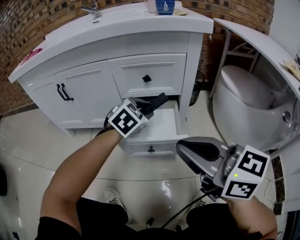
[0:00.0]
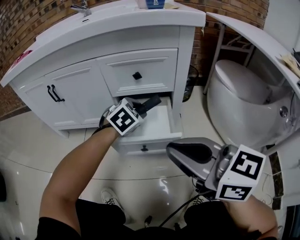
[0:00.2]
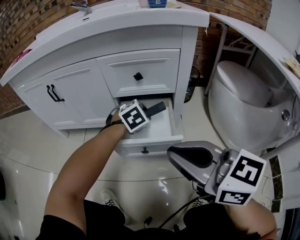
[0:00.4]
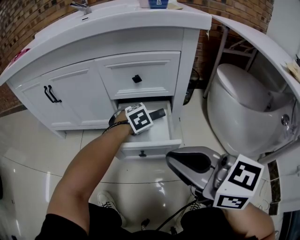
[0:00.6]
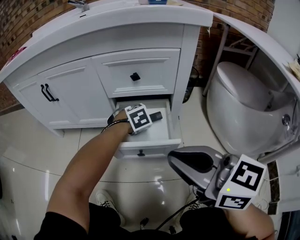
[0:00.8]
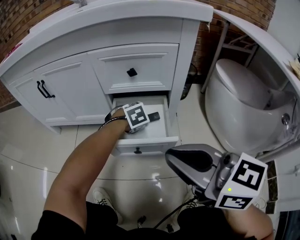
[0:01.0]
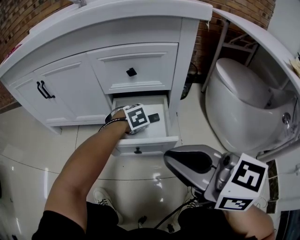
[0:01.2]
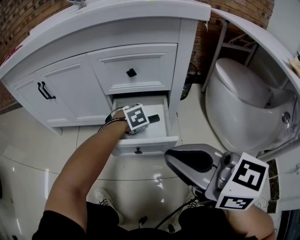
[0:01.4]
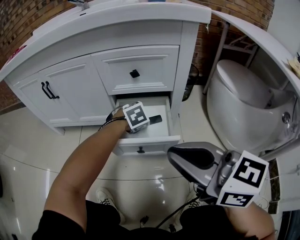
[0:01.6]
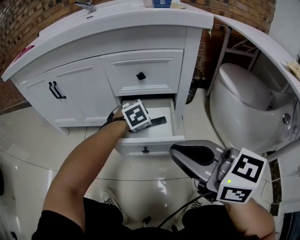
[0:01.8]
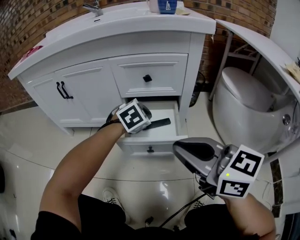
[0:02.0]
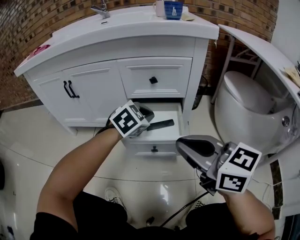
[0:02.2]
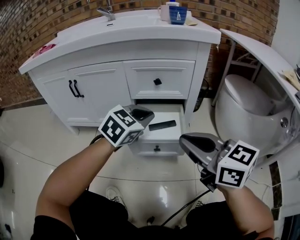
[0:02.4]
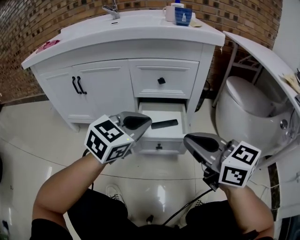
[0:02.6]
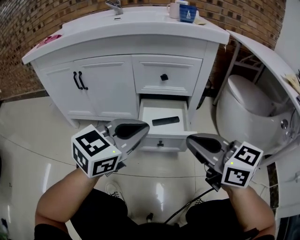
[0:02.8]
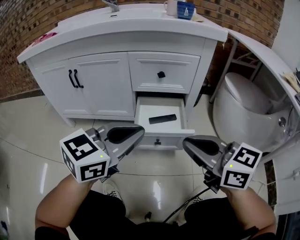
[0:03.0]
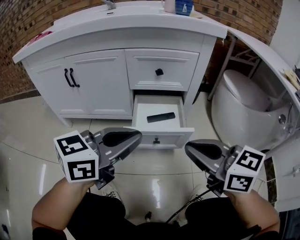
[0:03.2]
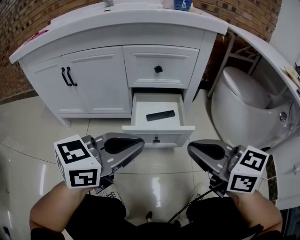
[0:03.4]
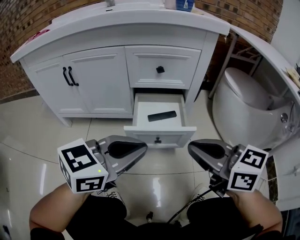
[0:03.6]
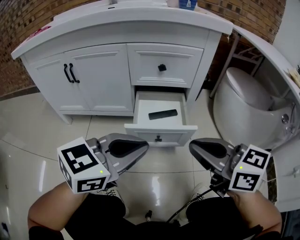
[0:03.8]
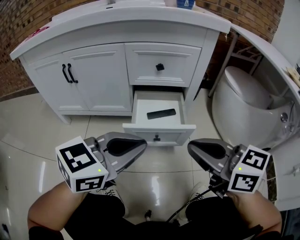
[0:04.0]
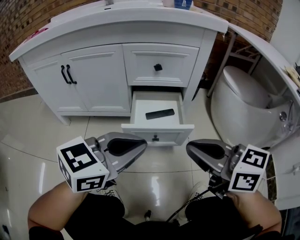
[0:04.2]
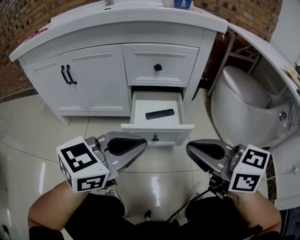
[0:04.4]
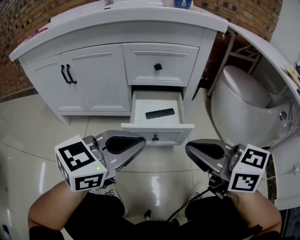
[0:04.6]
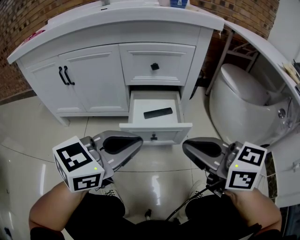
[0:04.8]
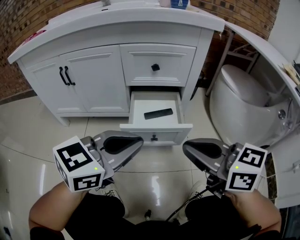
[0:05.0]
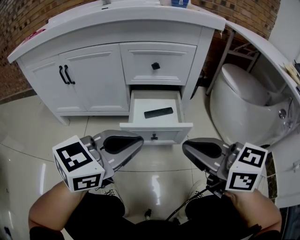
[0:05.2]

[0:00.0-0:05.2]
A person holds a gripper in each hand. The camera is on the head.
0:00.0 to 0:01.8: The left gripper is displaced downward by roughly 10 cm, and changes its angle by approximately 20 degrees.
0:01.8 to 0:03.4: The left gripper goes about 30 cm backward and upward, points its fingers approximately 50 degrees further upward, and closes.
0:03.4 to 0:05.2: The grippers make only small movements.

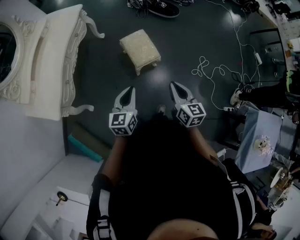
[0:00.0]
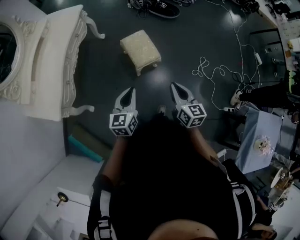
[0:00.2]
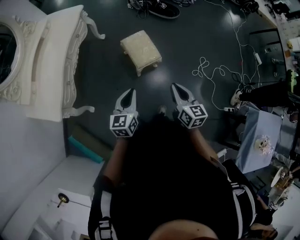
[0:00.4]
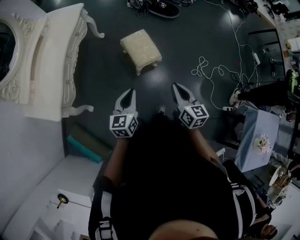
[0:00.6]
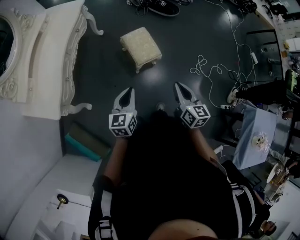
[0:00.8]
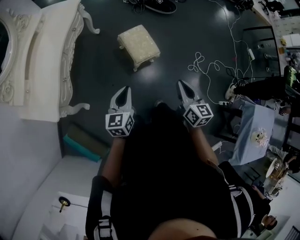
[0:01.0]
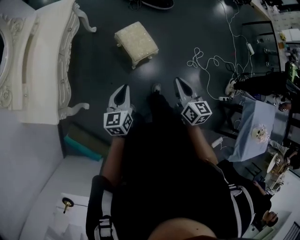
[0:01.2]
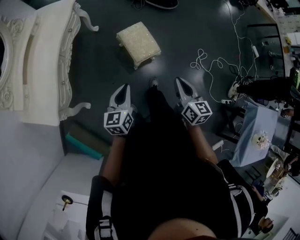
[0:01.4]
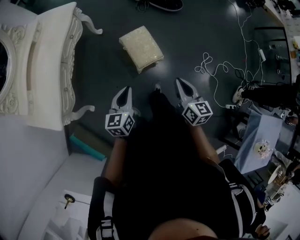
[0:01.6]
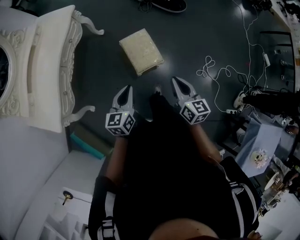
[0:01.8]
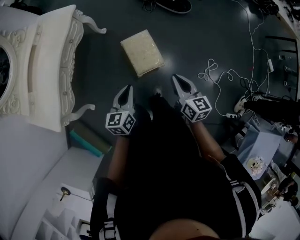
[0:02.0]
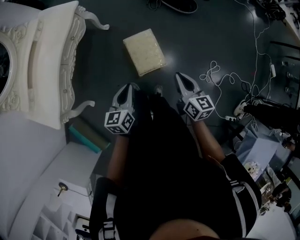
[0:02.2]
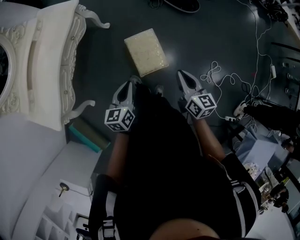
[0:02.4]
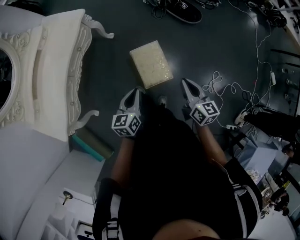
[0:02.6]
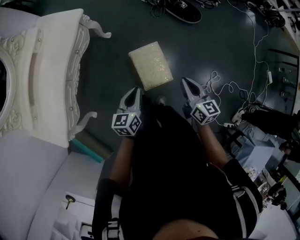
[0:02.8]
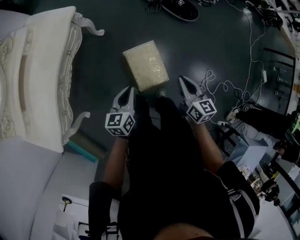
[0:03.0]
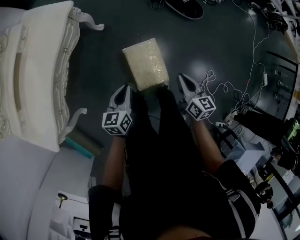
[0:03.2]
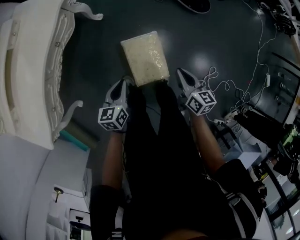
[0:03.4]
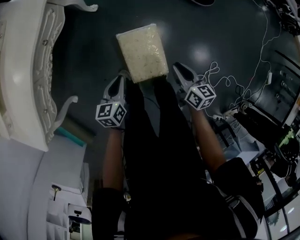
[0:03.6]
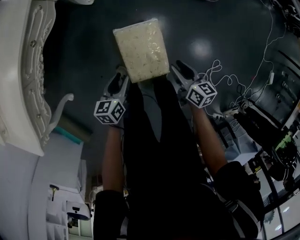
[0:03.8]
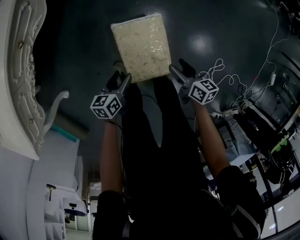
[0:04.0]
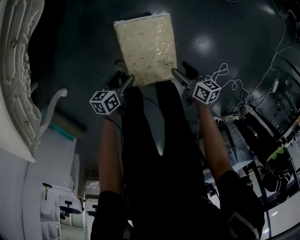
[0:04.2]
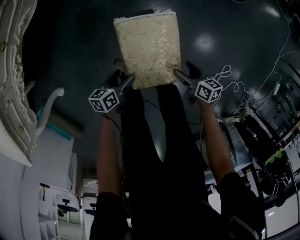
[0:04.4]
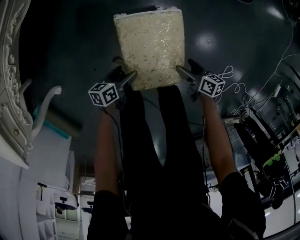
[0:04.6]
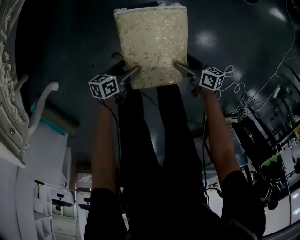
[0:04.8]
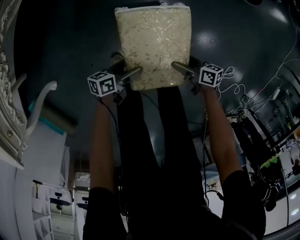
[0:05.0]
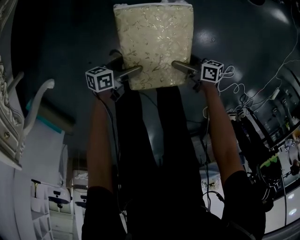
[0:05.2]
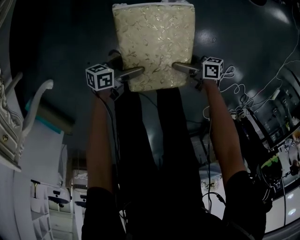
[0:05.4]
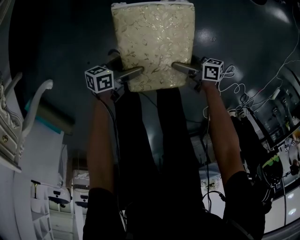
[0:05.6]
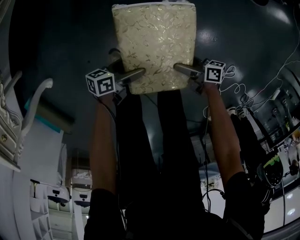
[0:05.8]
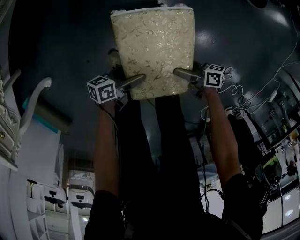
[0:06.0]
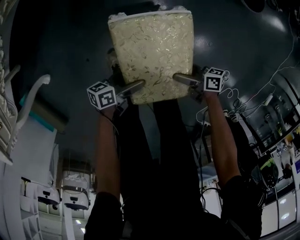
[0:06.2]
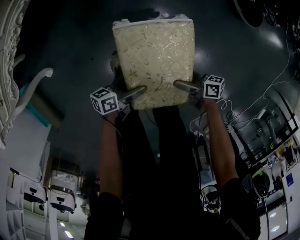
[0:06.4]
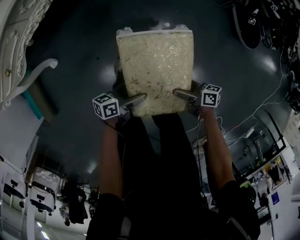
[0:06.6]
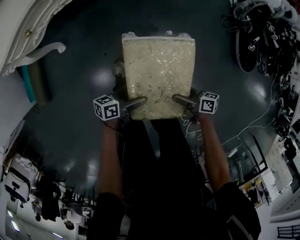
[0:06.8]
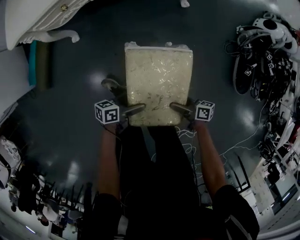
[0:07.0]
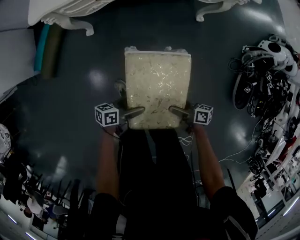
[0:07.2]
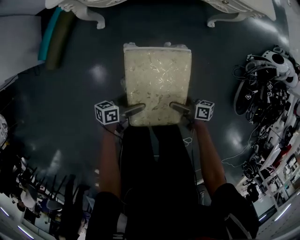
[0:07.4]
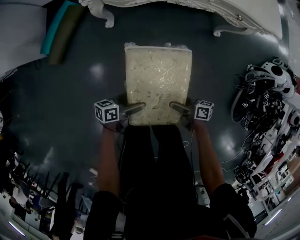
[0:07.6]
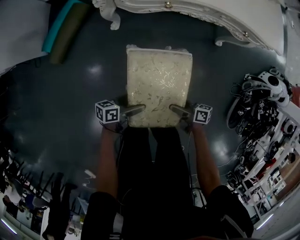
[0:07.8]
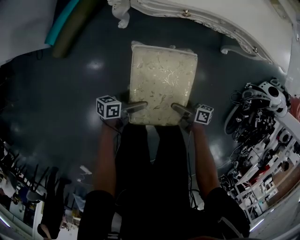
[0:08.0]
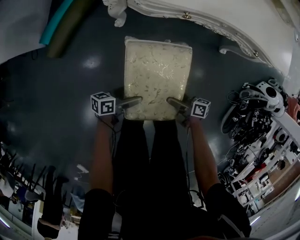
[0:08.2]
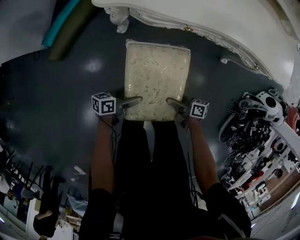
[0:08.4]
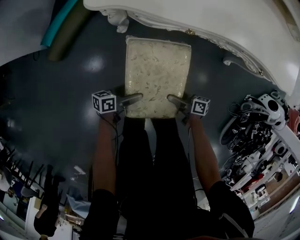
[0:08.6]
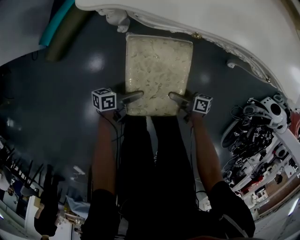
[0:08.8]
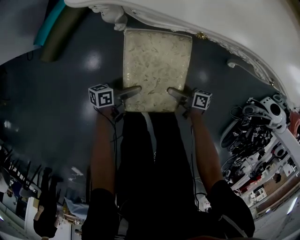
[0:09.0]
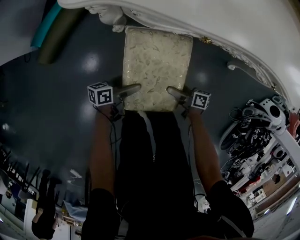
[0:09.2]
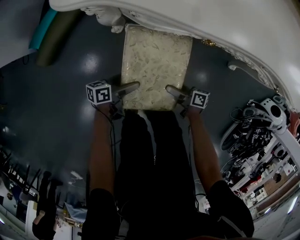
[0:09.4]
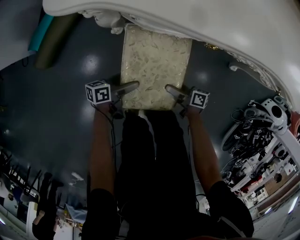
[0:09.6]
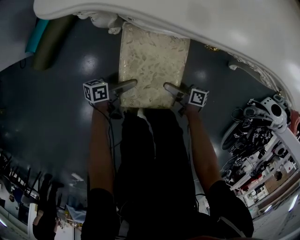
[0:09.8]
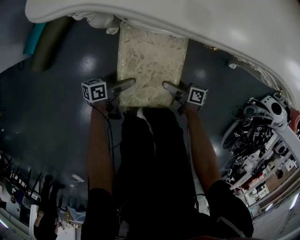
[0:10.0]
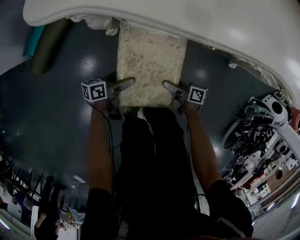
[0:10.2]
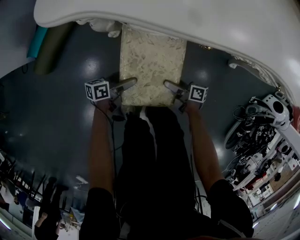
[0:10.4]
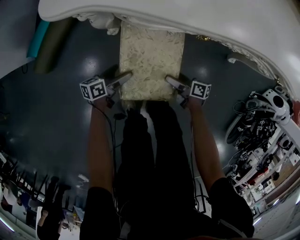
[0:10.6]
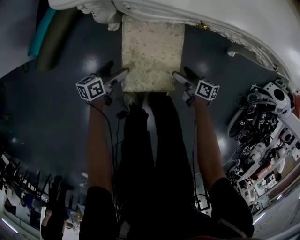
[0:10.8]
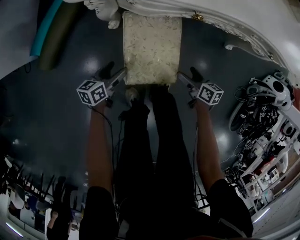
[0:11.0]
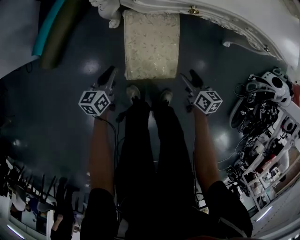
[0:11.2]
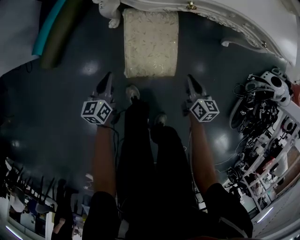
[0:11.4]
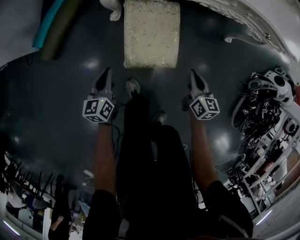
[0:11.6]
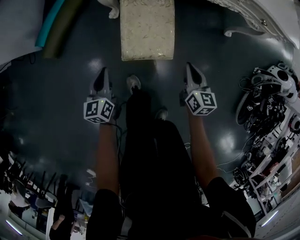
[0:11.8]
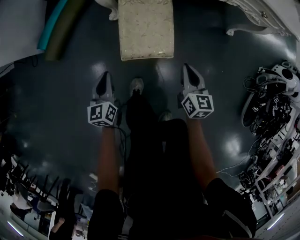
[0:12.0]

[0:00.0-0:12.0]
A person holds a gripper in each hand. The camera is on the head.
0:00.0 to 0:01.6: Both grippers travel together forward, about 10 cm.
0:01.6 to 0:03.0: Both grippers travel together forward, about 30 cm.
0:03.0 to 0:04.4: The grippers both shift downward by approximately 50 cm. The left gripper changes its angle by some 30 degrees, and opens, while the right gripper turns by about 40 degrees, and opens its fingers.
0:04.4 to 0:06.0: Both grippers move downward, approximately 10 cm. The right gripper turns by approximately 30 degrees. The left gripper turns by approximately 20 degrees.
0:06.0 to 0:07.6: The left gripper moves approximately 40 cm, and turns by approximately 50 degrees; the right gripper shifts by approximately 40 cm, and swivels about 50 degrees.
0:07.6 to 0:09.0: The right gripper ends up about 30 cm from where it was. The left gripper shifts by about 30 cm.
0:09.0 to 0:10.4: Both grippers travel together downward and forward, about 10 cm.
0:10.4 to 0:12.0: The left gripper goes roughly 25 cm upward, backward and to the left, turns by some 60 degrees, and closes its fingers, while the right gripper goes roughly 25 cm upward and backward, swivels some 60 degrees, and closes up.

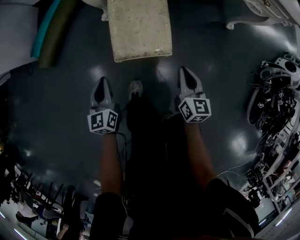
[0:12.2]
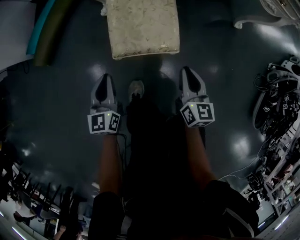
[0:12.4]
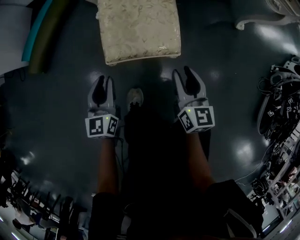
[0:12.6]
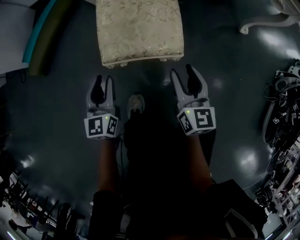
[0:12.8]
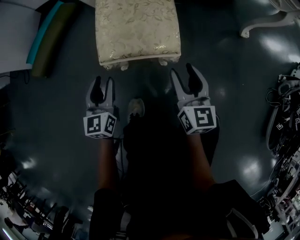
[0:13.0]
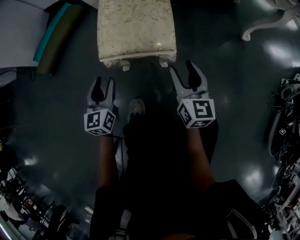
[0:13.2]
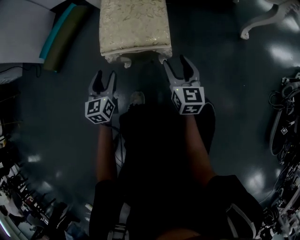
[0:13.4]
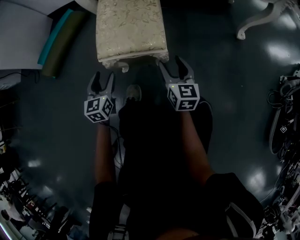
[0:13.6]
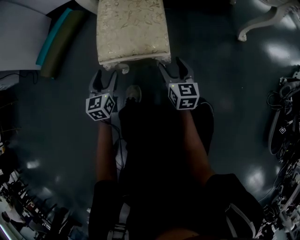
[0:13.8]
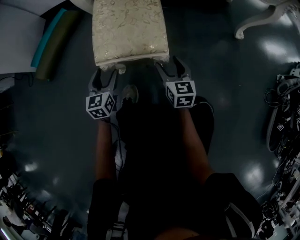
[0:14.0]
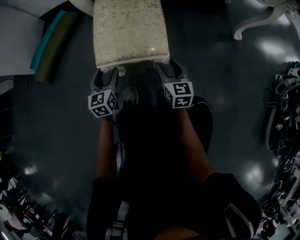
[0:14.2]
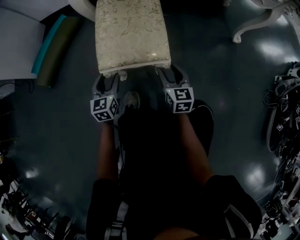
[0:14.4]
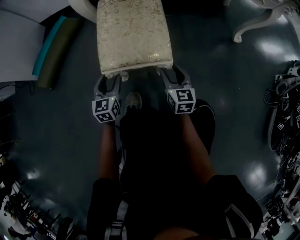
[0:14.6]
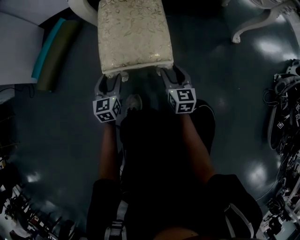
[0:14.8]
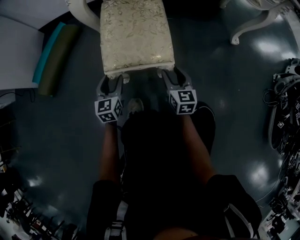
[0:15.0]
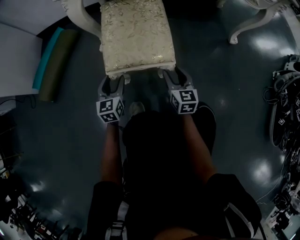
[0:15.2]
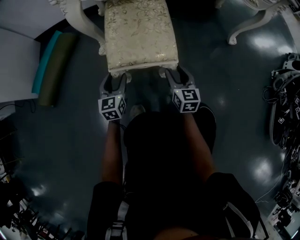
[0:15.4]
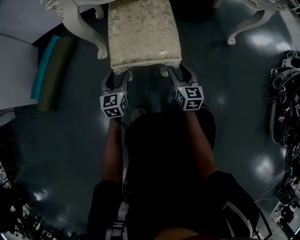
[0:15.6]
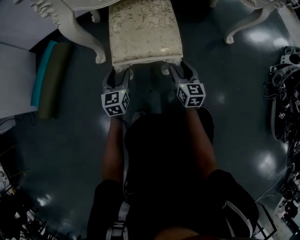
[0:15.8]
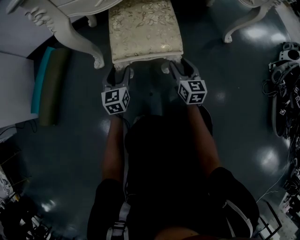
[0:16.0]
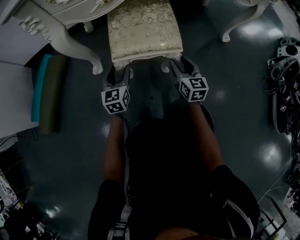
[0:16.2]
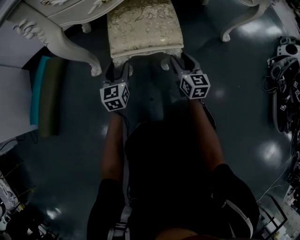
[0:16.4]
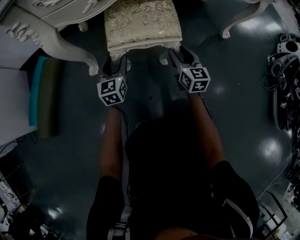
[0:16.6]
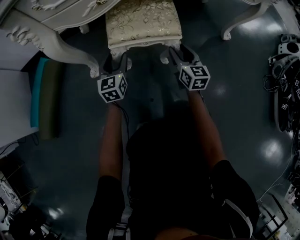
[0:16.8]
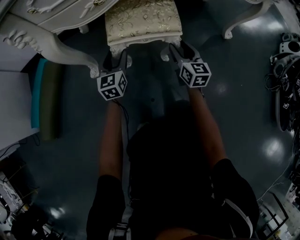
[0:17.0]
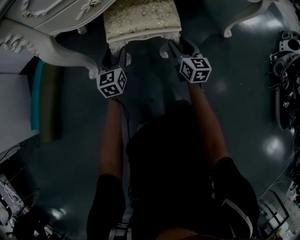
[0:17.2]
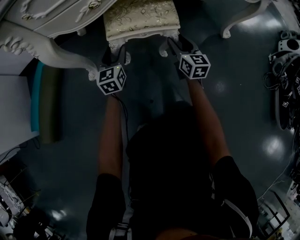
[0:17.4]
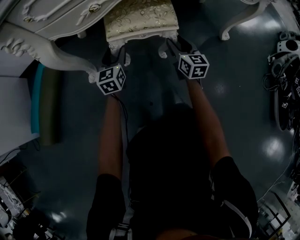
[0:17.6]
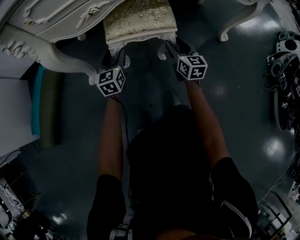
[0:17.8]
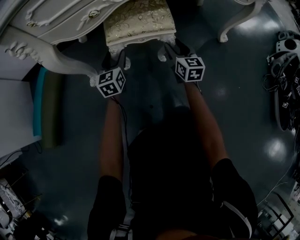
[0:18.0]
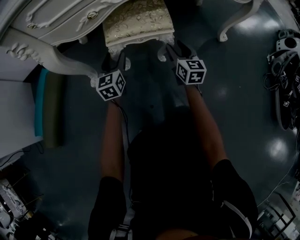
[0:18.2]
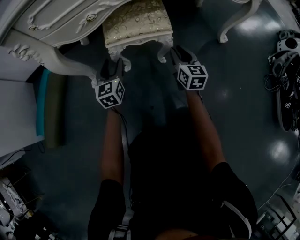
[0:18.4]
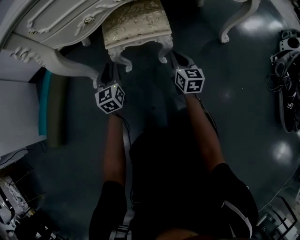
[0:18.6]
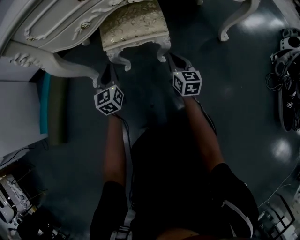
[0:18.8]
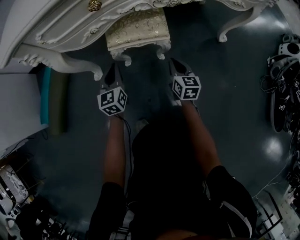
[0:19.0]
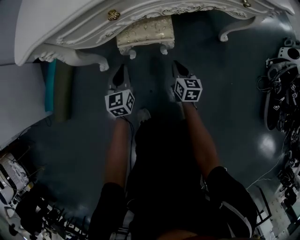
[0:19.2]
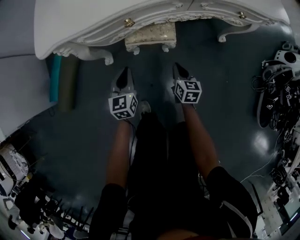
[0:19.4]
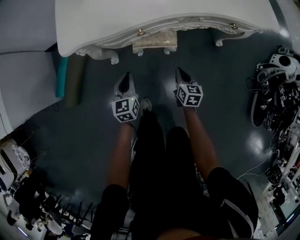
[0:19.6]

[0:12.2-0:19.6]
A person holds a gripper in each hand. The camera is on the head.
0:12.2 to 0:13.6: Both grippers travel together downward, approximately 15 cm. The left gripper opens. Meanwhile the right gripper opens up.
0:13.6 to 0:15.2: The left gripper moves forward, about 10 cm. The right gripper heads forward, covering about 5 cm.
0:15.2 to 0:16.6: The grippers both shift forward by about 20 cm.
0:16.6 to 0:18.2: Both grippers move forward, some 5 cm.
0:18.2 to 0:19.6: Both grippers move upward and backward, roughly 25 cm. The right gripper rotates approximately 20 degrees, and closes its fingers, while the left gripper closes up.
